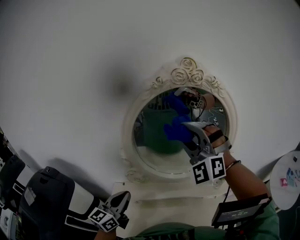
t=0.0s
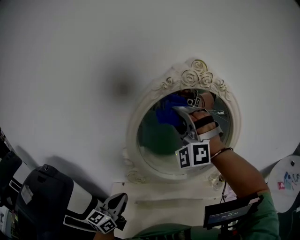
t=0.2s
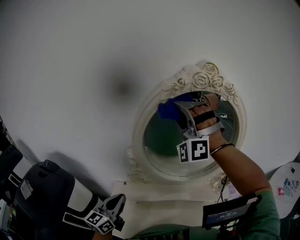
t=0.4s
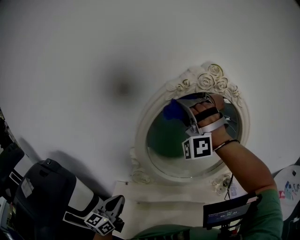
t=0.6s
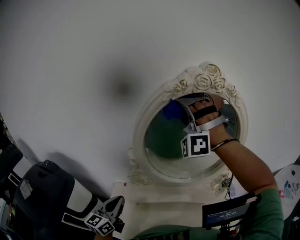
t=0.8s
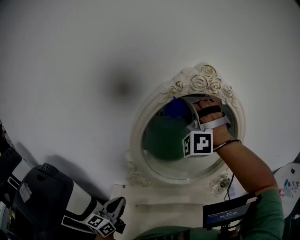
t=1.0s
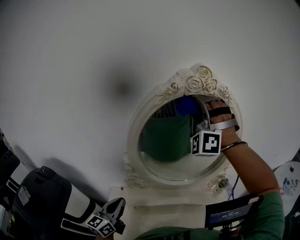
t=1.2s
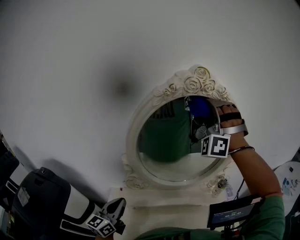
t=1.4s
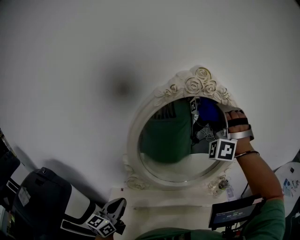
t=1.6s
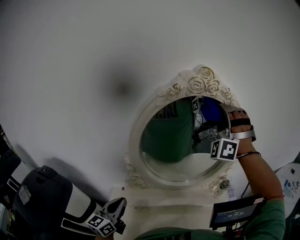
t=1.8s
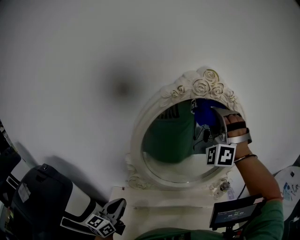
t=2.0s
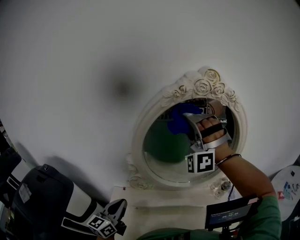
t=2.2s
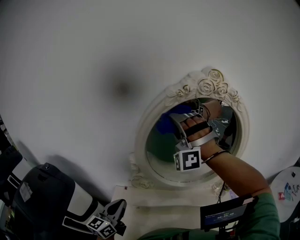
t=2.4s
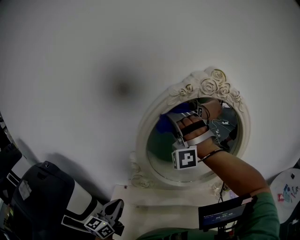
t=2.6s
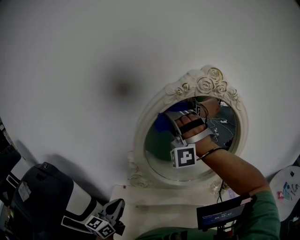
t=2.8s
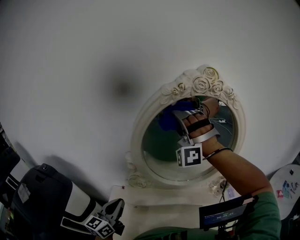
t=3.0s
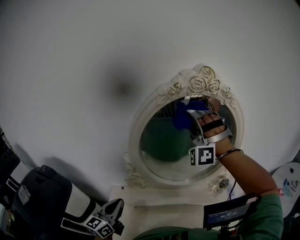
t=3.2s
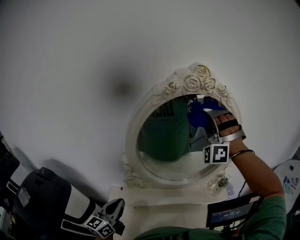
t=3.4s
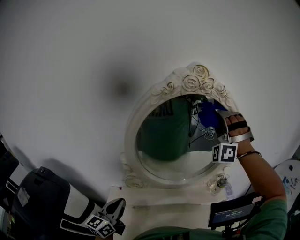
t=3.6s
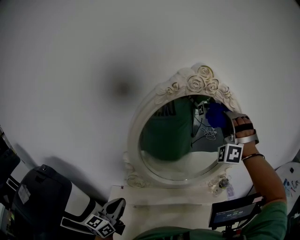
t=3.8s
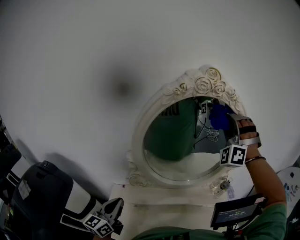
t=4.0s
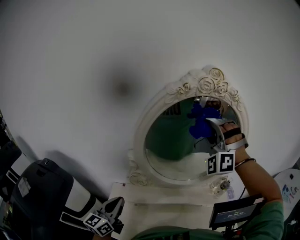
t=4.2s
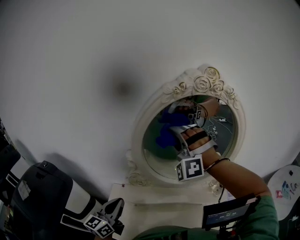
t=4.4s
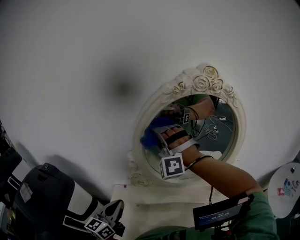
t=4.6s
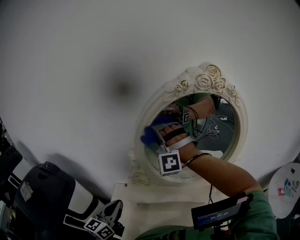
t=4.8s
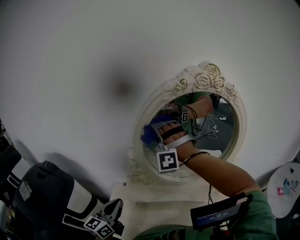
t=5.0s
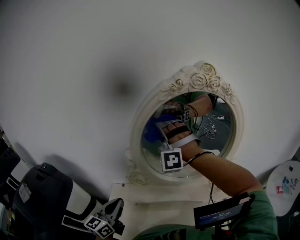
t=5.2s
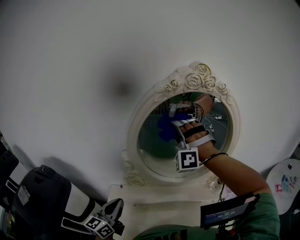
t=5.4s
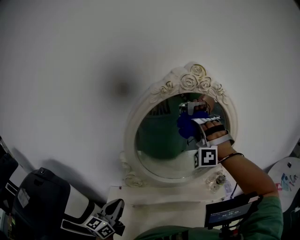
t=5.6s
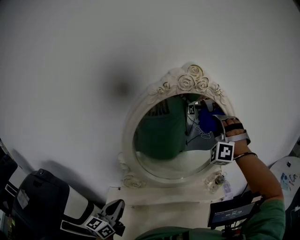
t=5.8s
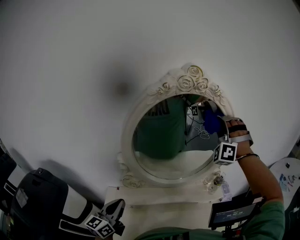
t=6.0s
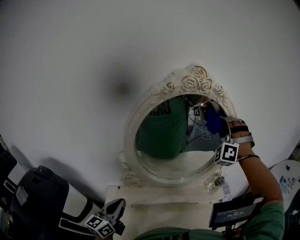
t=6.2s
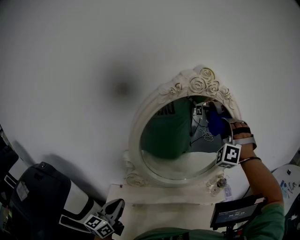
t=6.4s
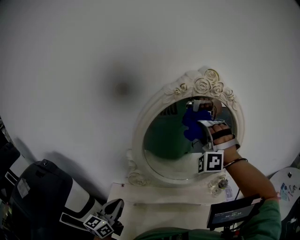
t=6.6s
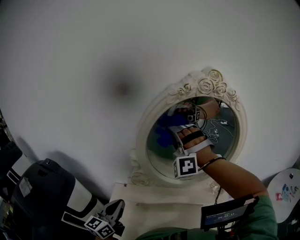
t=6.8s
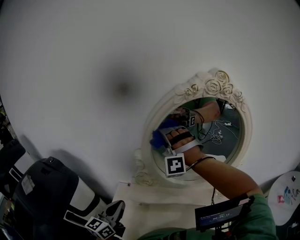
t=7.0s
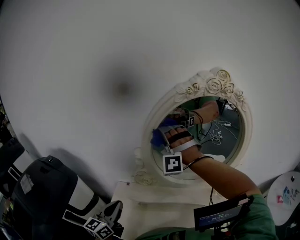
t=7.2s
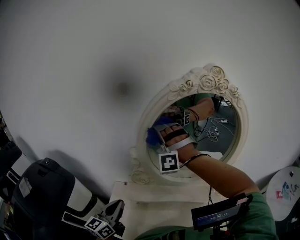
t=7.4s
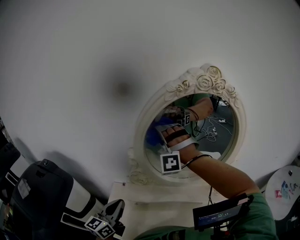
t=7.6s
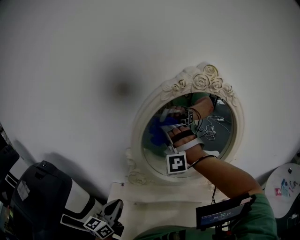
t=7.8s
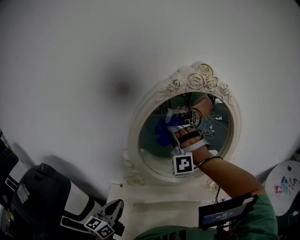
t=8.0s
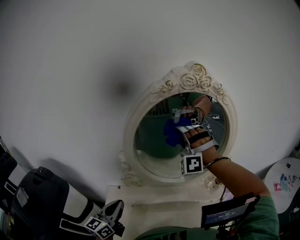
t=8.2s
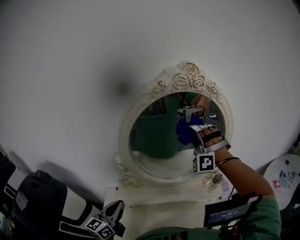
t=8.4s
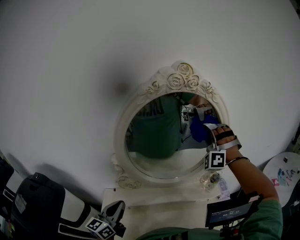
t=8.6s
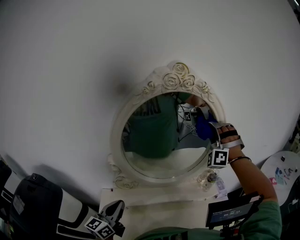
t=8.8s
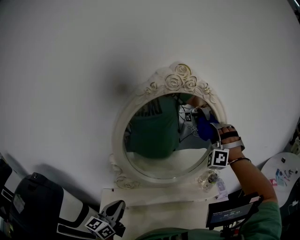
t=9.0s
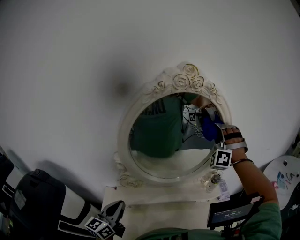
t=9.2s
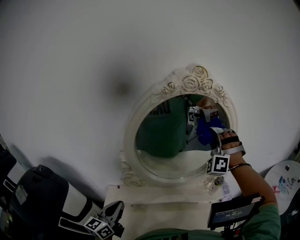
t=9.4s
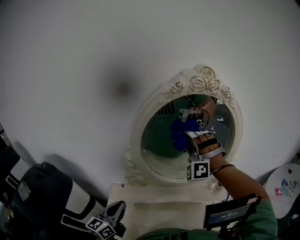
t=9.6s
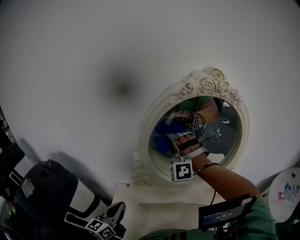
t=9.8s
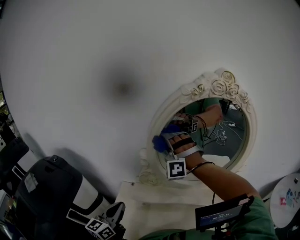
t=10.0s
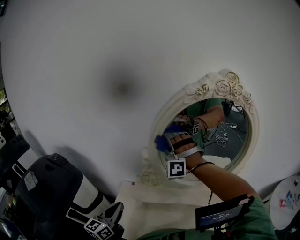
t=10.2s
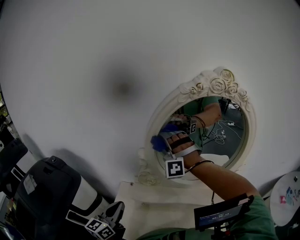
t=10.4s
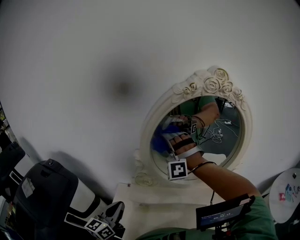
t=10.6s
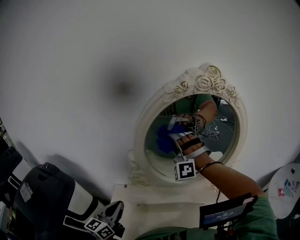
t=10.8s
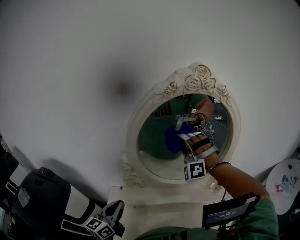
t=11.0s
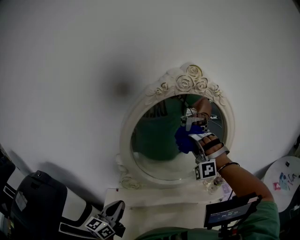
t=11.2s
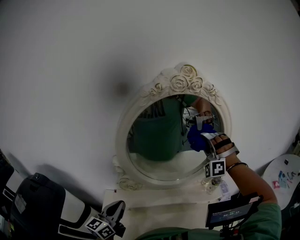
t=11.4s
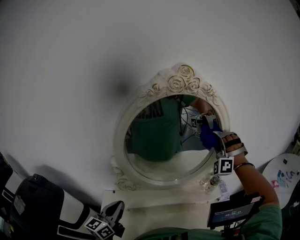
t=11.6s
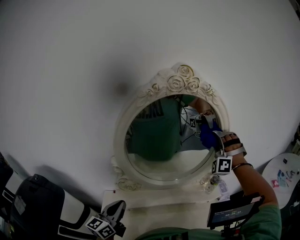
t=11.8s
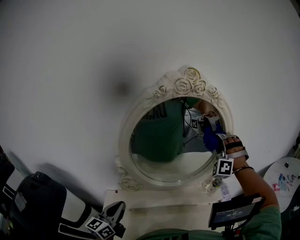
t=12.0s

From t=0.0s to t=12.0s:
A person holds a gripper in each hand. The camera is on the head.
From t=7.6s to t=9.0s: The left gripper shifts by some 5 cm.
From t=9.0s to t=10.4s: The left gripper moves about 10 cm.
From t=10.4s to t=12.0s: The left gripper ends up about 10 cm from where it was.

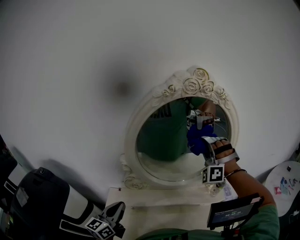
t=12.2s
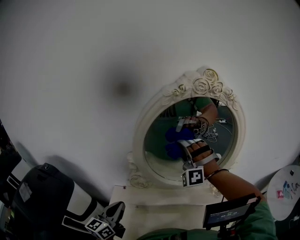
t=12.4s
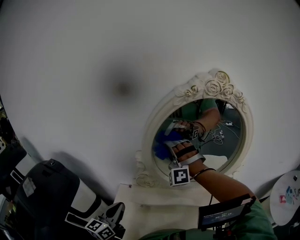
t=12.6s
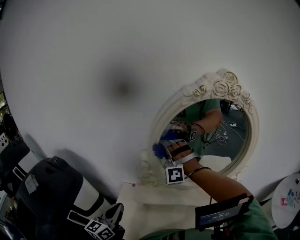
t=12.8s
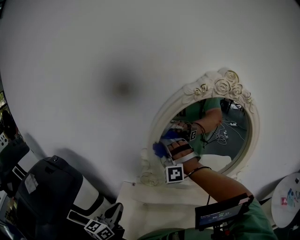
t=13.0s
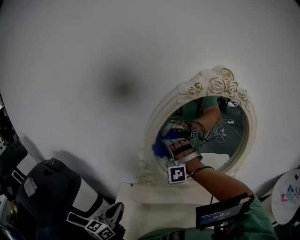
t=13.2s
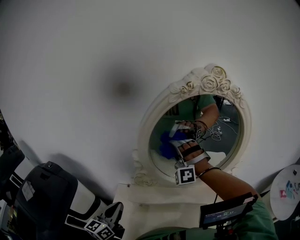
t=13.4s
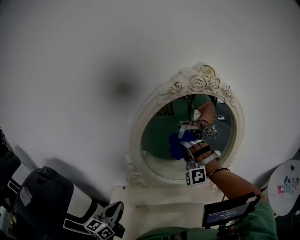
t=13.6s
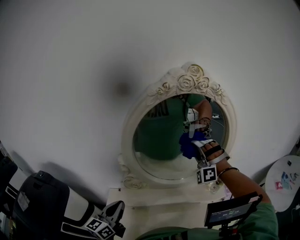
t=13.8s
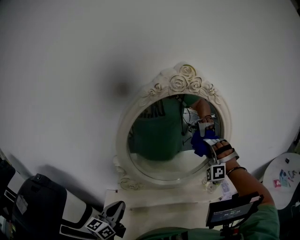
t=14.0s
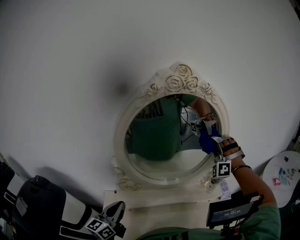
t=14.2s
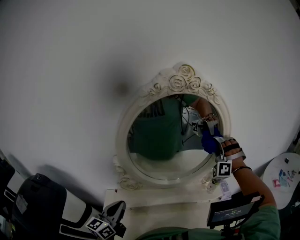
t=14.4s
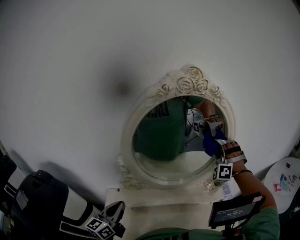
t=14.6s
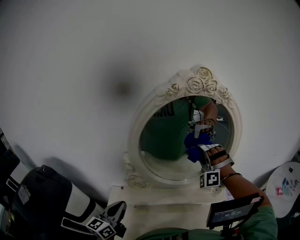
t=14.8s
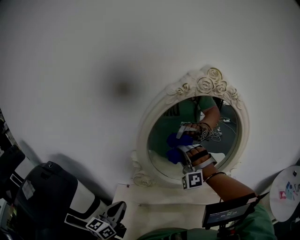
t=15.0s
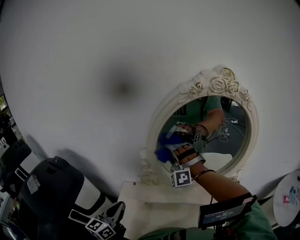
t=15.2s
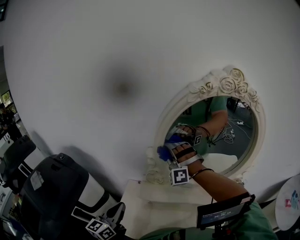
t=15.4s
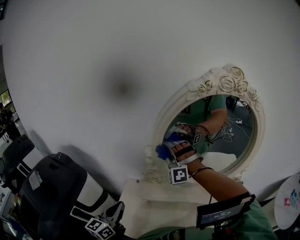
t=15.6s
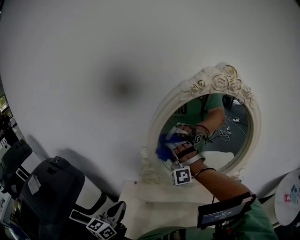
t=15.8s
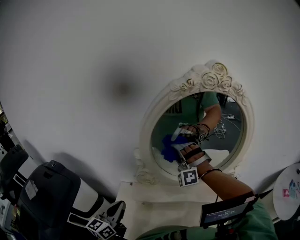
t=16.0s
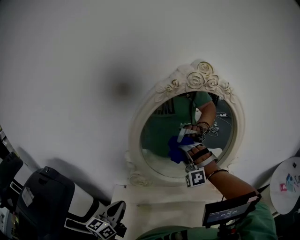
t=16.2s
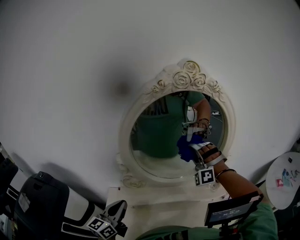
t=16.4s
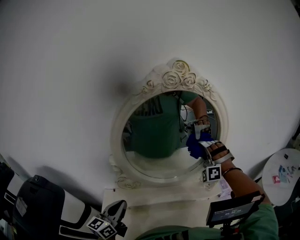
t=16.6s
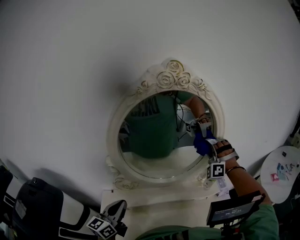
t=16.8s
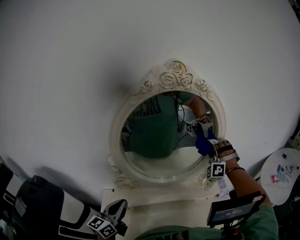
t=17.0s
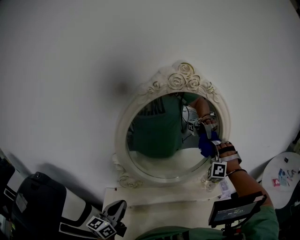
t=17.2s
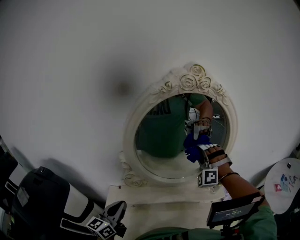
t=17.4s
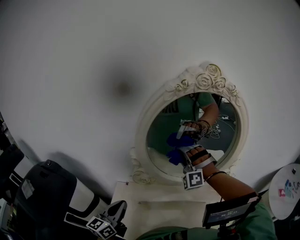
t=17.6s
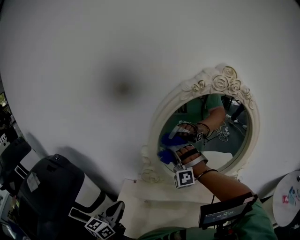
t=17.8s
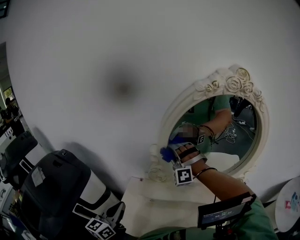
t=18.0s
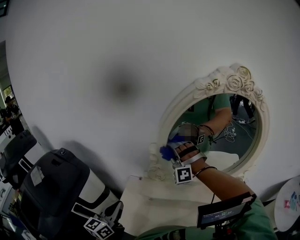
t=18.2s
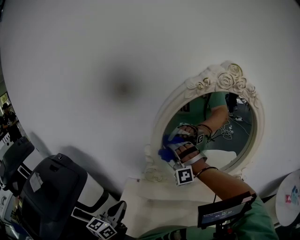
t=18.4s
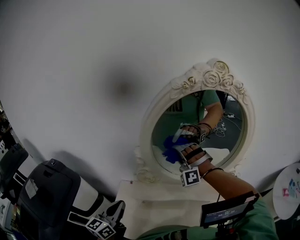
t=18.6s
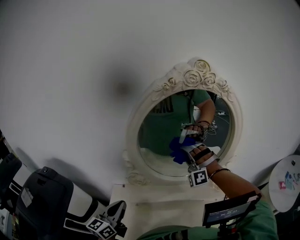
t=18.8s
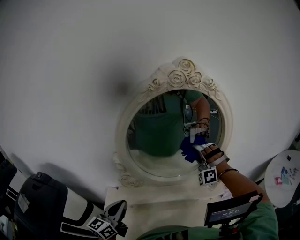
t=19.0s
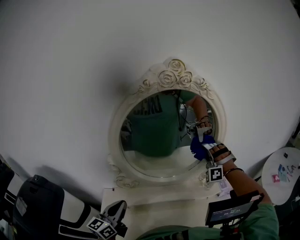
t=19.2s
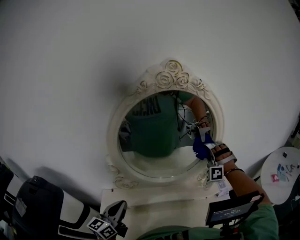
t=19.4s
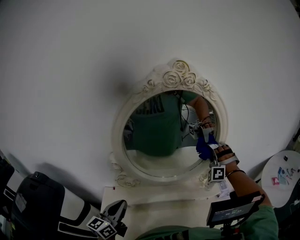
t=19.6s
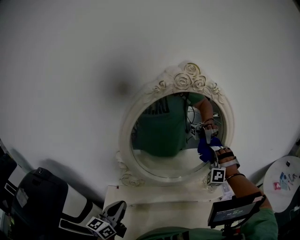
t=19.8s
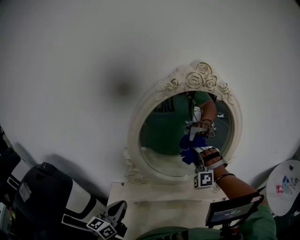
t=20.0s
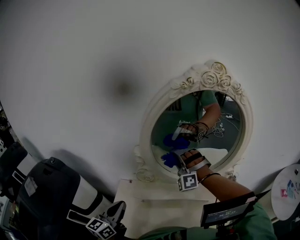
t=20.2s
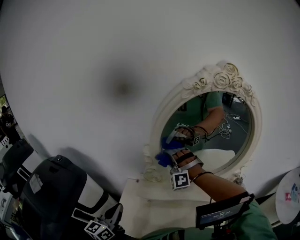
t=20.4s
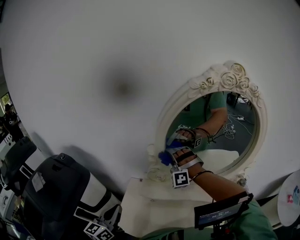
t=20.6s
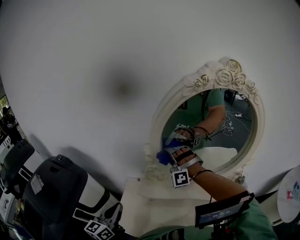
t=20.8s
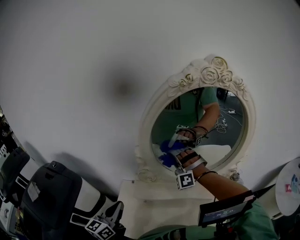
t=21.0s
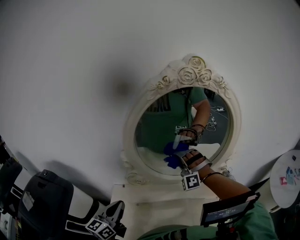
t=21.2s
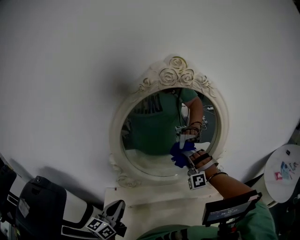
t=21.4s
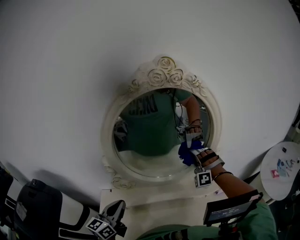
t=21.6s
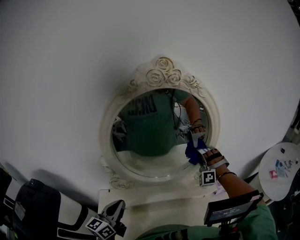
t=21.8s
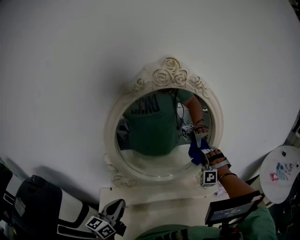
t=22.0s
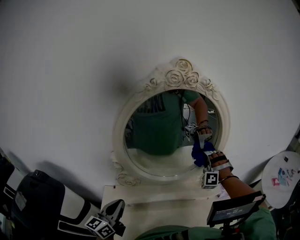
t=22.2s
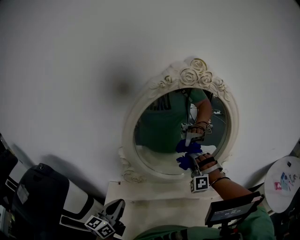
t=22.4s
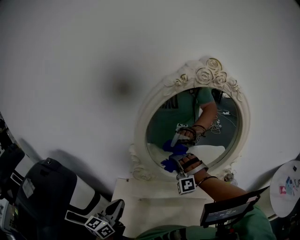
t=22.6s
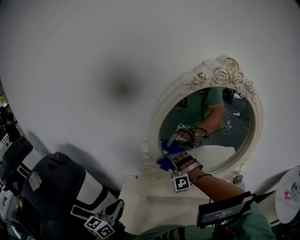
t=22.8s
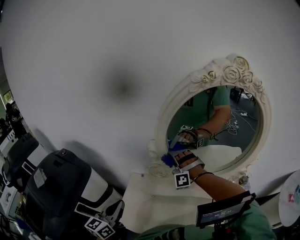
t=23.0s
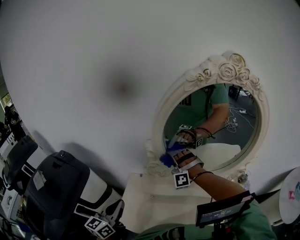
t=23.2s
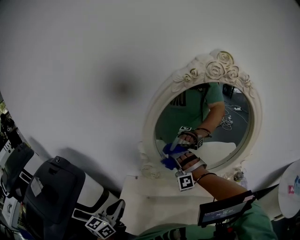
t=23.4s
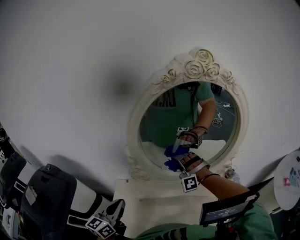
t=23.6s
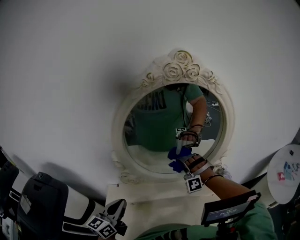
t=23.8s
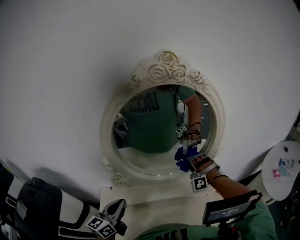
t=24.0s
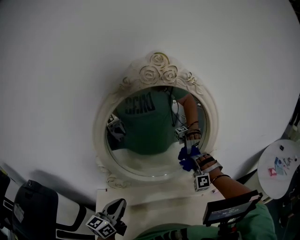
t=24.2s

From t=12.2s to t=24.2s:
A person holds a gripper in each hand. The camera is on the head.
From t=13.8s to t=15.2s: The left gripper ends up about 10 cm from where it was.
From t=15.2s to t=16.6s: The left gripper shifts by approximately 10 cm.
From t=16.6s to t=18.2s: The left gripper changes place by roughly 15 cm.
From t=18.2s to t=19.8s: The left gripper changes place by roughly 15 cm.
From t=22.6s to t=24.2s: The left gripper changes place by roughly 15 cm.

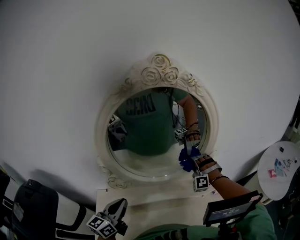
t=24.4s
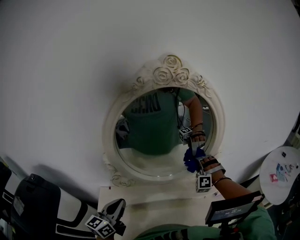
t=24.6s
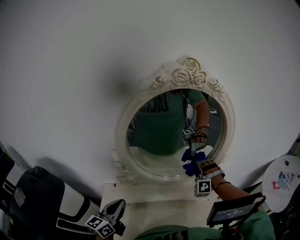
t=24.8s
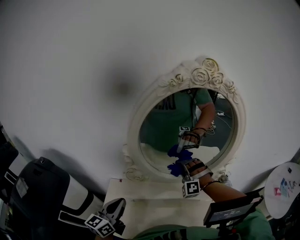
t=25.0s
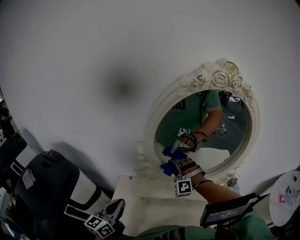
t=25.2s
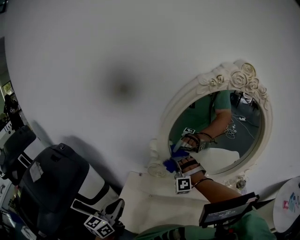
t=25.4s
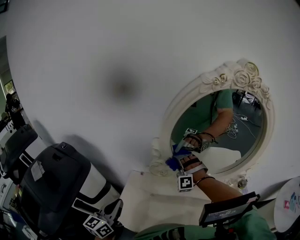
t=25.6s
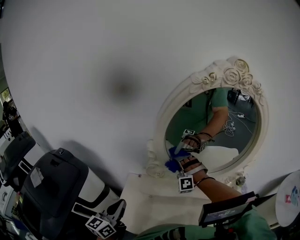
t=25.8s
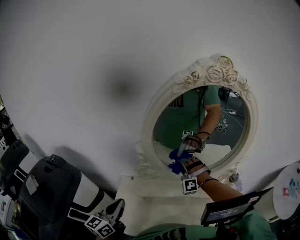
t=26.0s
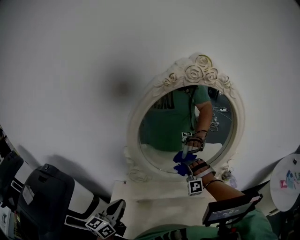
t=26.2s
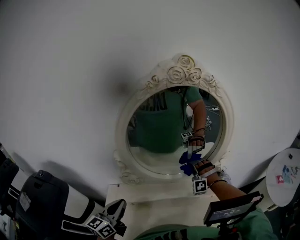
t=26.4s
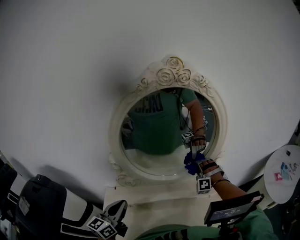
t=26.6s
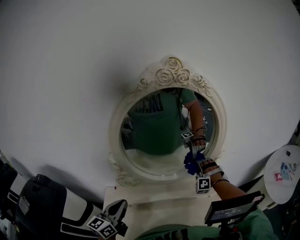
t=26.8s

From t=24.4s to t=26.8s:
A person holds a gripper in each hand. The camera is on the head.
From t=24.4s to t=25.6s: The left gripper moves approximately 20 cm, and rotates approximately 20 degrees.
From t=25.6s to t=26.8s: The left gripper ends up about 20 cm from where it was, and turns by about 20 degrees.
